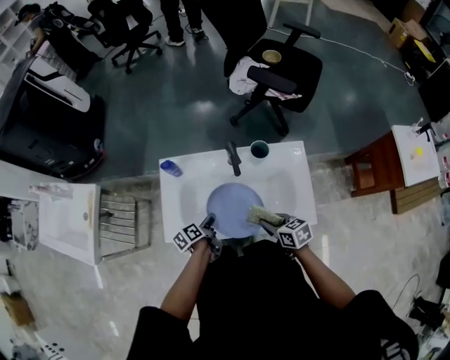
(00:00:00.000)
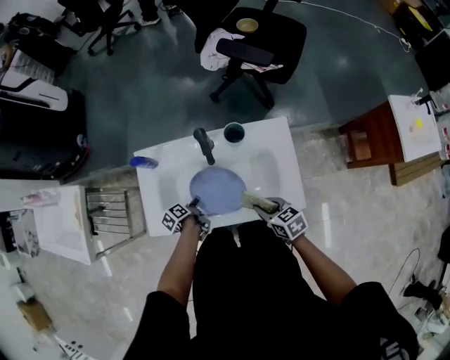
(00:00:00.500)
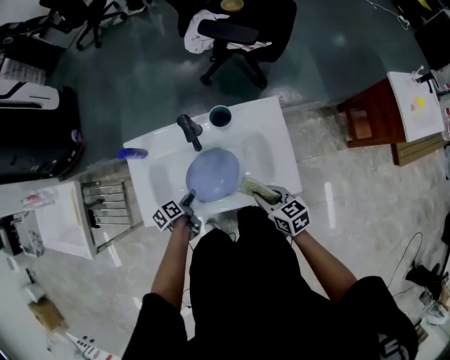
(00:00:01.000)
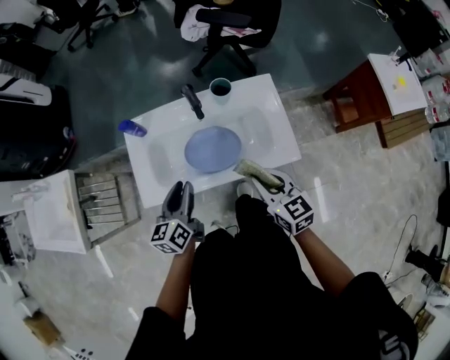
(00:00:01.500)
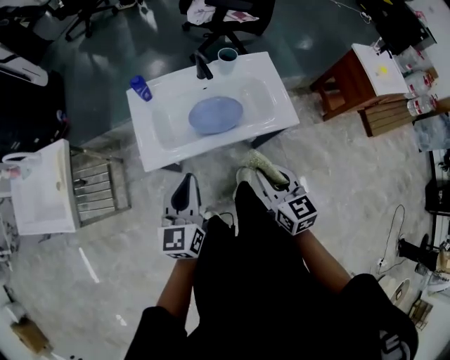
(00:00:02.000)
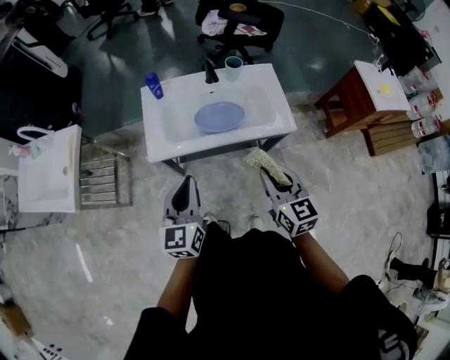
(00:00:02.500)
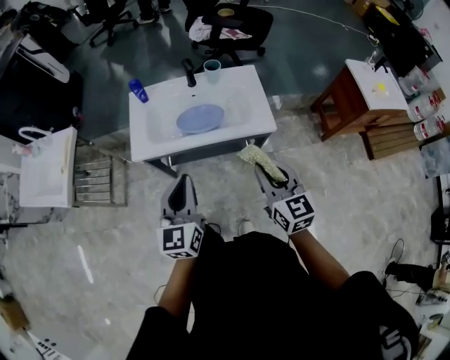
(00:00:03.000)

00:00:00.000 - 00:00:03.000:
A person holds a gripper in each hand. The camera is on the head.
00:00:00.000 - 00:00:01.500: The right gripper moves upward and backward, roughly 10 cm, and swivels some 30 degrees, while the left gripper heads upward, covering roughly 15 cm, and turns by approximately 40 degrees.
00:00:01.500 - 00:00:03.000: Both grippers travel together backward and upward, approximately 25 cm. The left gripper swivels approximately 30 degrees, and closes.

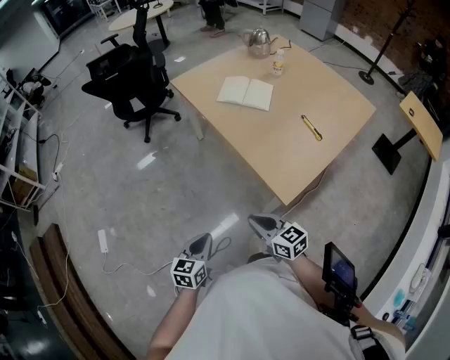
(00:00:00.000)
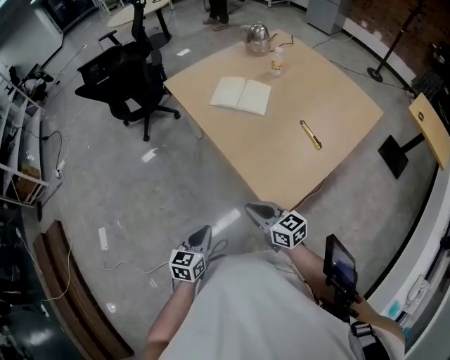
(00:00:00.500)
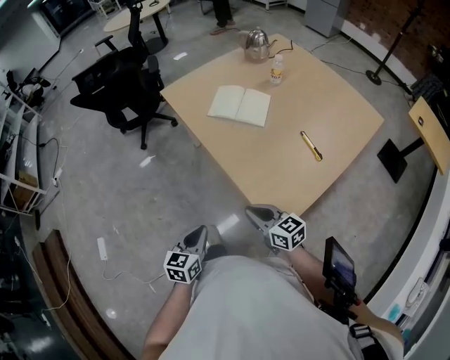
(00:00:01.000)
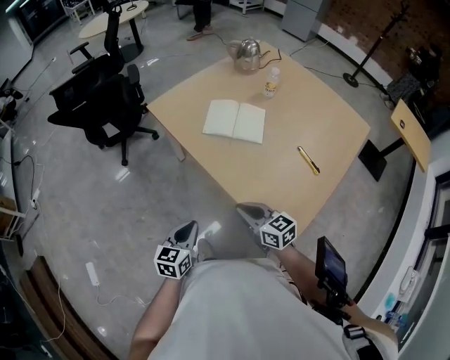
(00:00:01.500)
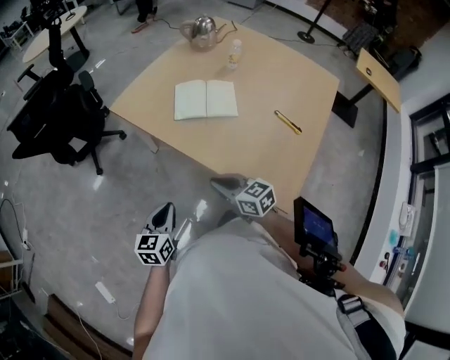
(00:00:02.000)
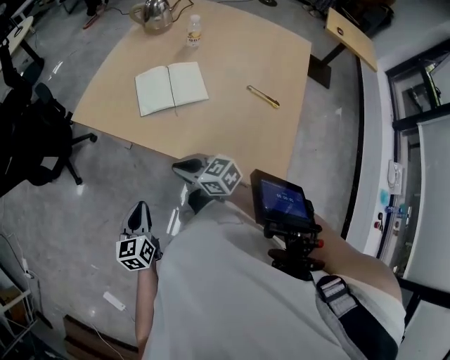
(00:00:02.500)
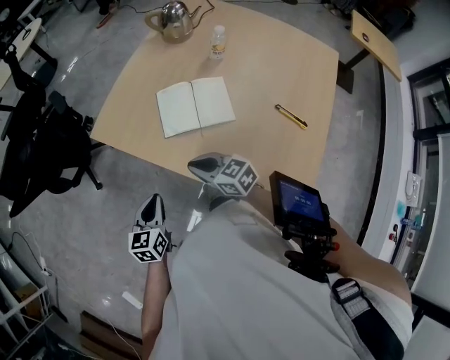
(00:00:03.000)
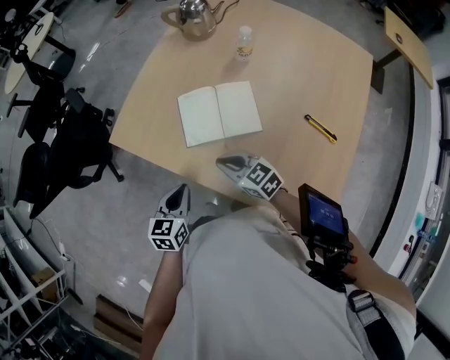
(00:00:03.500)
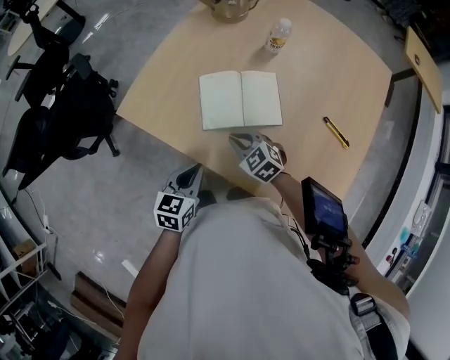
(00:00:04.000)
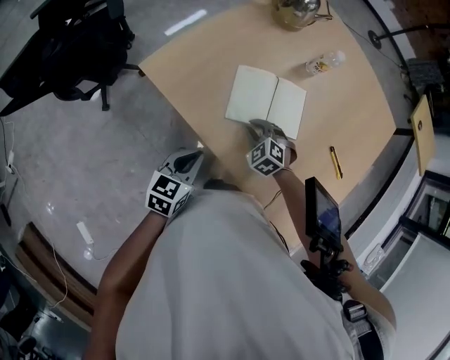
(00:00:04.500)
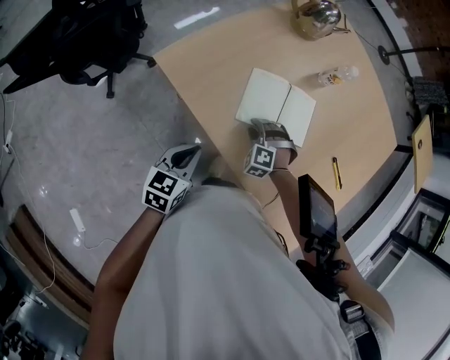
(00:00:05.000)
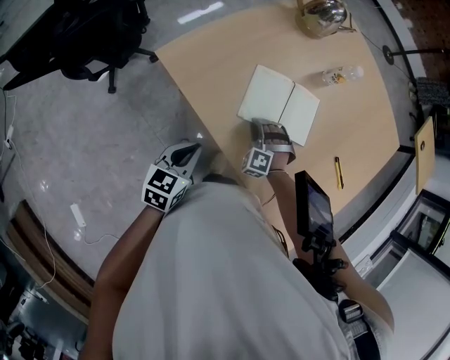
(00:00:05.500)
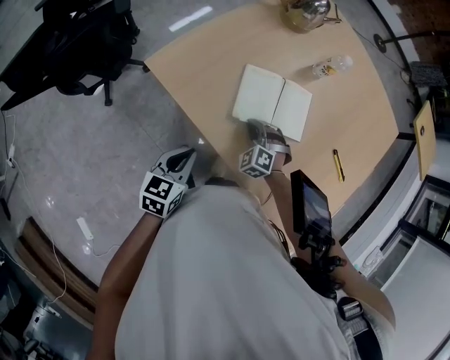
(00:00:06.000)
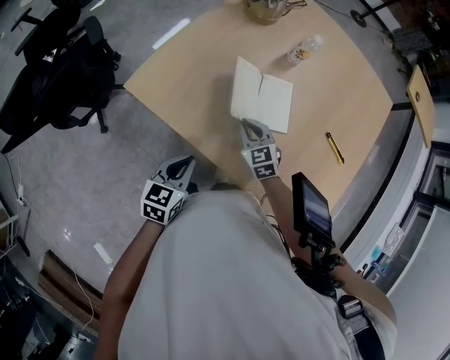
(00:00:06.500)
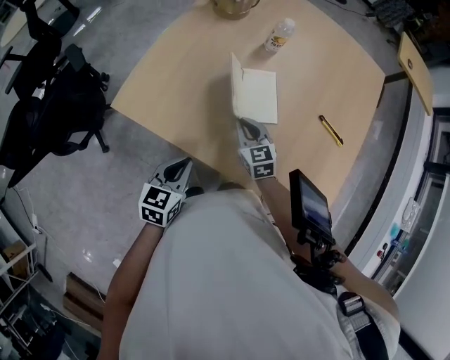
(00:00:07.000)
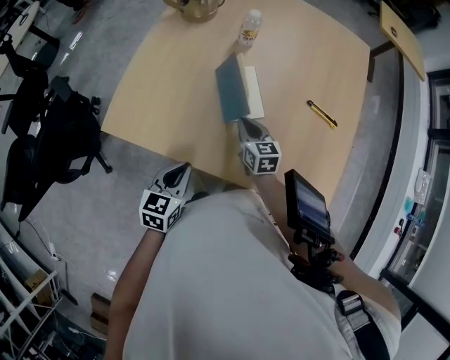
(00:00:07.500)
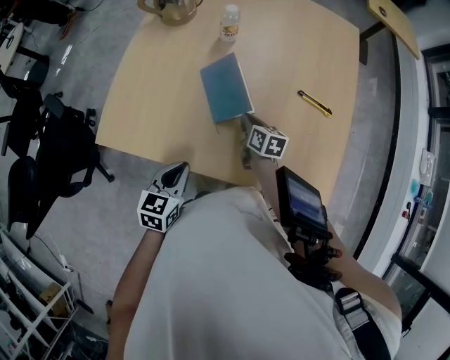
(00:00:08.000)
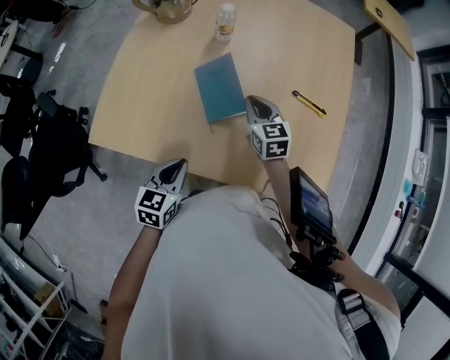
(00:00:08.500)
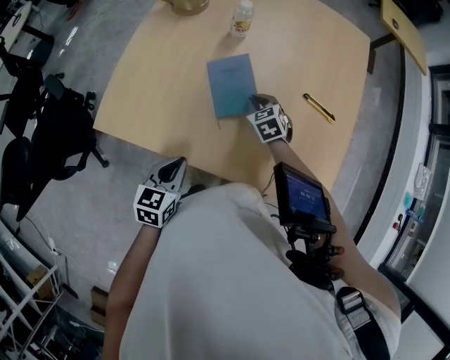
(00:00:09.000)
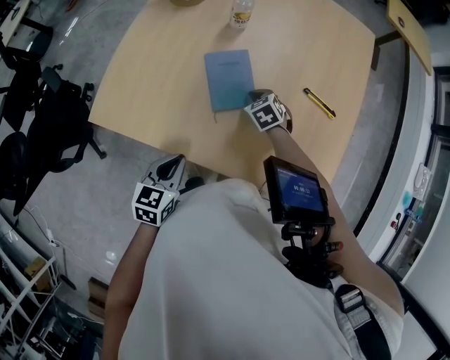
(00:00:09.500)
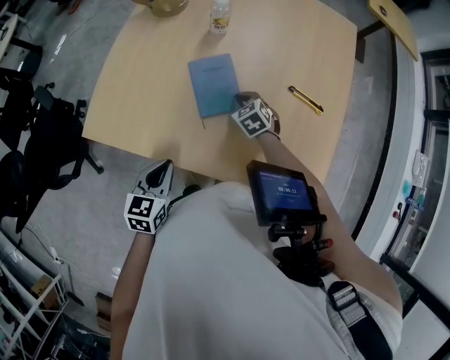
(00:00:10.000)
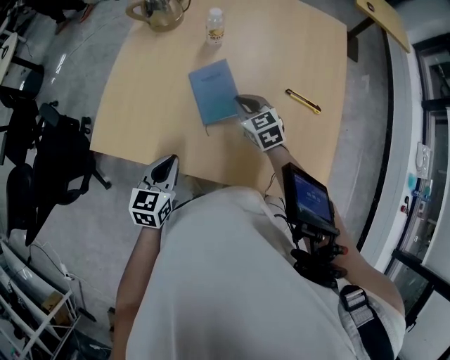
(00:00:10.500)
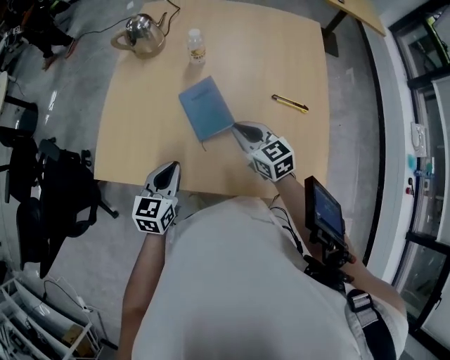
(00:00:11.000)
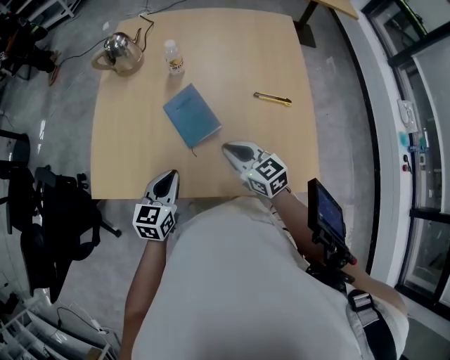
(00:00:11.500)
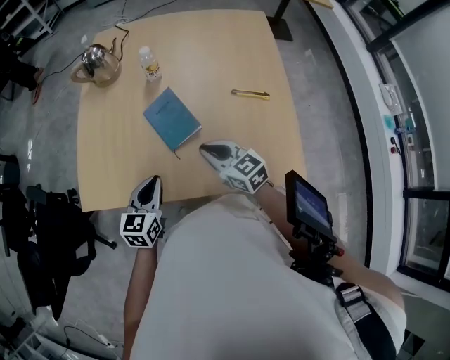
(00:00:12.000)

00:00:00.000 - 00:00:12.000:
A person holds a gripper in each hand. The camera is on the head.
00:00:00.000 - 00:00:02.000: Both grippers move forward, approximately 30 cm.
00:00:02.000 - 00:00:04.000: Both grippers travel together forward, approximately 25 cm. The right gripper changes its angle by about 30 degrees.
00:00:04.000 - 00:00:06.000: The right gripper heads downward, covering approximately 5 cm, and changes its angle by approximately 40 degrees. Meanwhile the left gripper shifts some 10 cm to the left.
00:00:06.000 - 00:00:08.000: The left gripper travels to the right and forward by roughly 10 cm, and rotates roughly 30 degrees. The right gripper goes roughly 20 cm to the right, and rotates around the line of its fingers by about 110 degrees, clockwise from behind.
00:00:08.000 - 00:00:10.000: The right gripper travels upward and back again, approximately 10 cm each way, and twists some 60 degrees counterclockwise, seen from behind.
00:00:10.000 - 00:00:12.000: The right gripper heads upward and backward, covering approximately 20 cm, and points its fingers some 30 degrees further upward. Meanwhile the left gripper moves approximately 5 cm.

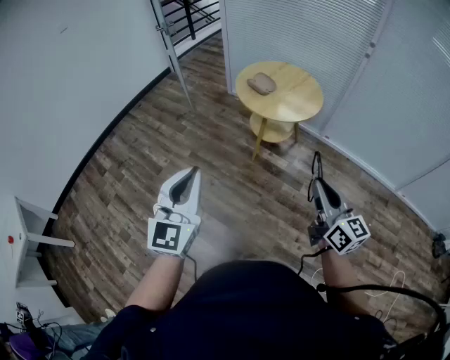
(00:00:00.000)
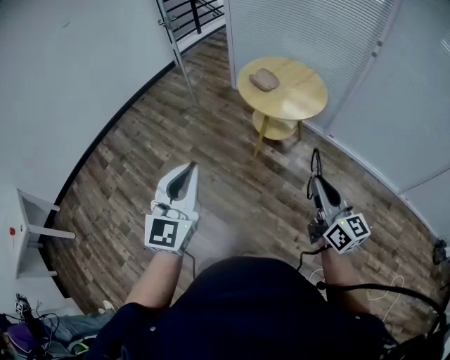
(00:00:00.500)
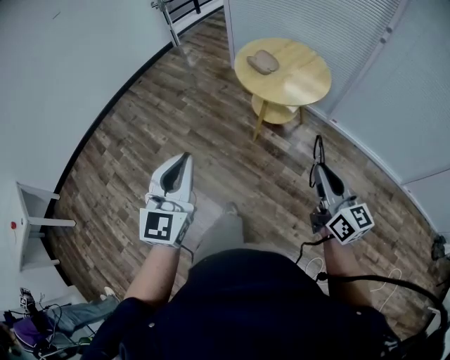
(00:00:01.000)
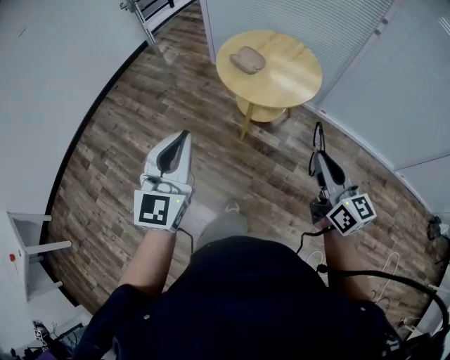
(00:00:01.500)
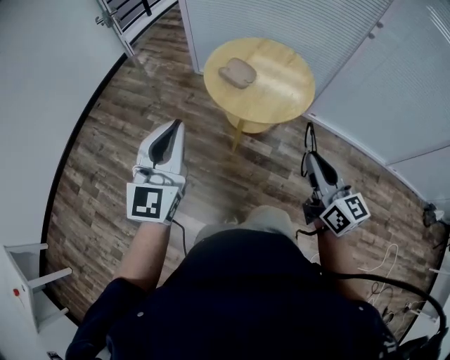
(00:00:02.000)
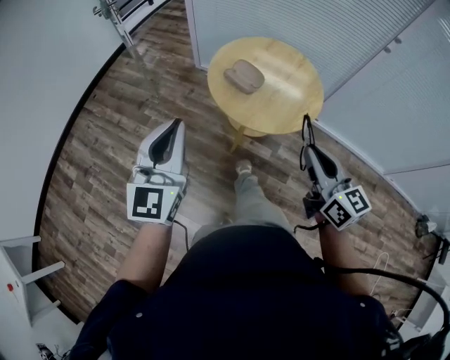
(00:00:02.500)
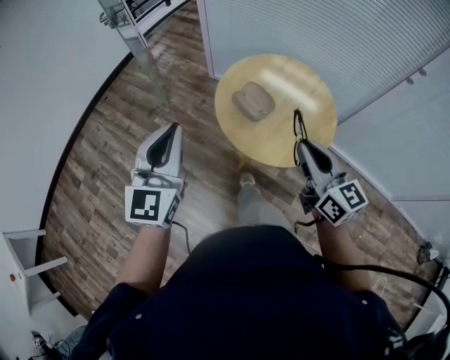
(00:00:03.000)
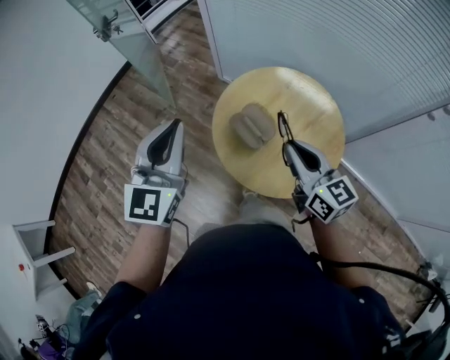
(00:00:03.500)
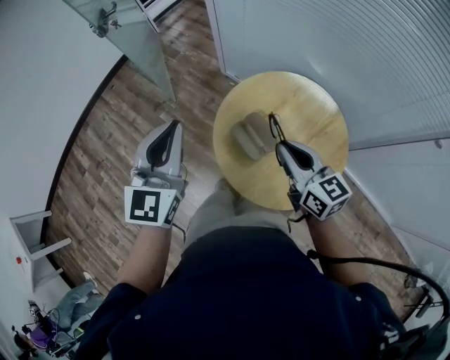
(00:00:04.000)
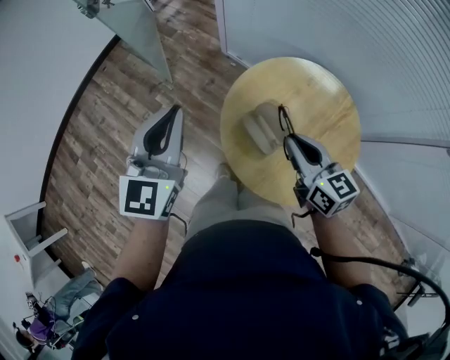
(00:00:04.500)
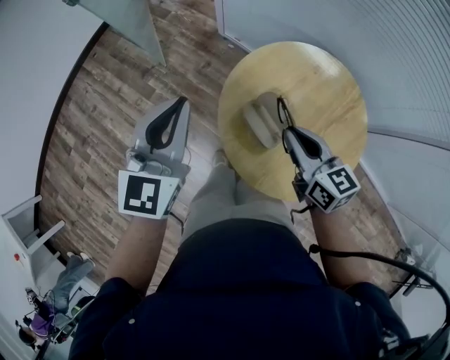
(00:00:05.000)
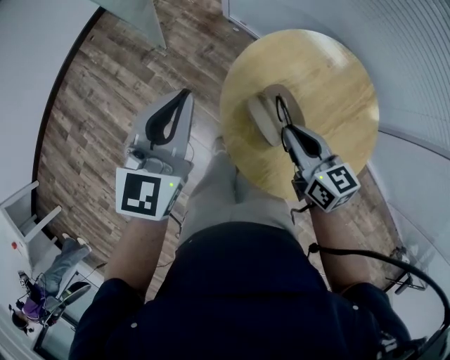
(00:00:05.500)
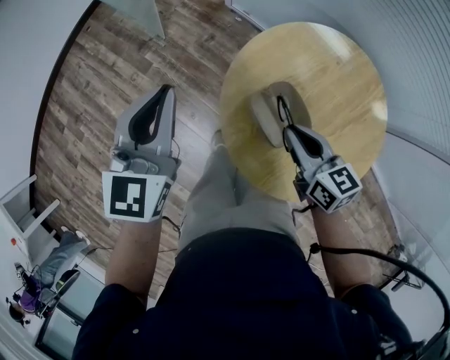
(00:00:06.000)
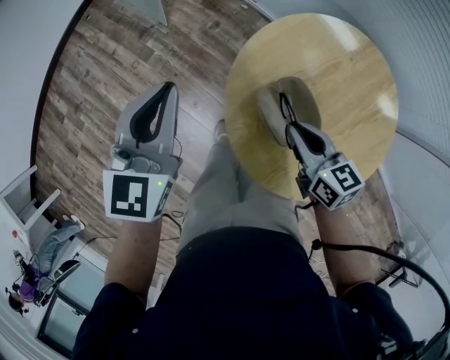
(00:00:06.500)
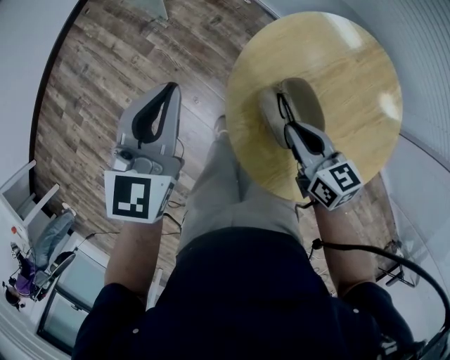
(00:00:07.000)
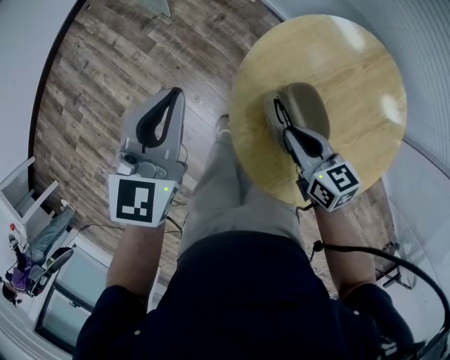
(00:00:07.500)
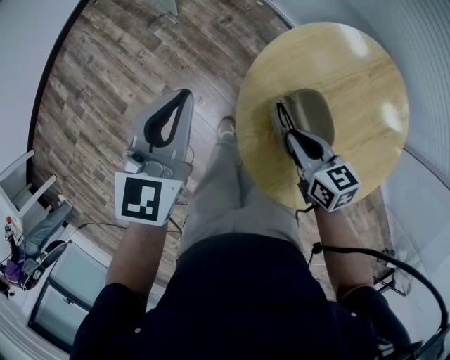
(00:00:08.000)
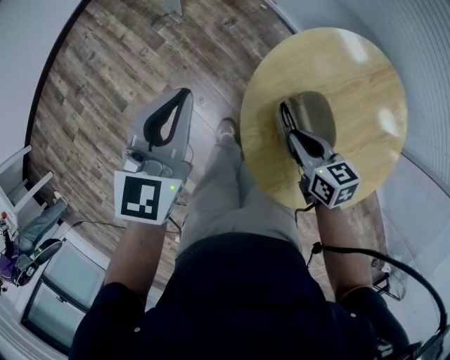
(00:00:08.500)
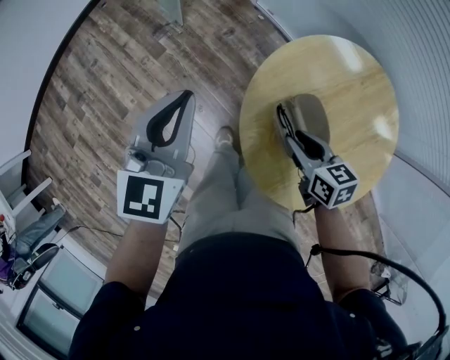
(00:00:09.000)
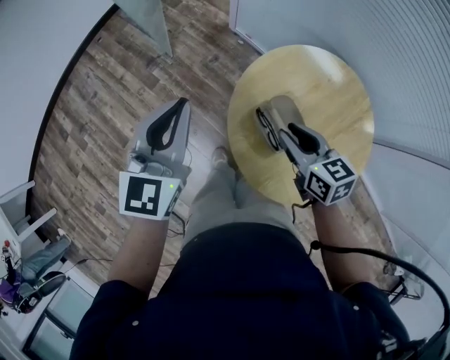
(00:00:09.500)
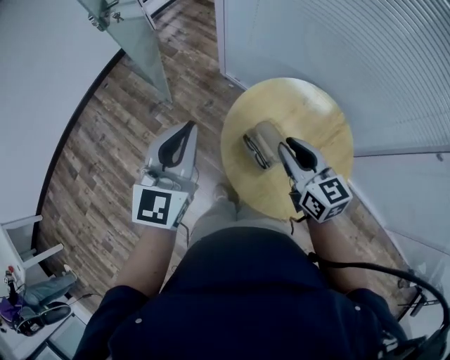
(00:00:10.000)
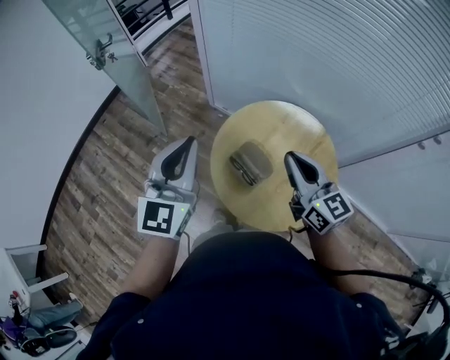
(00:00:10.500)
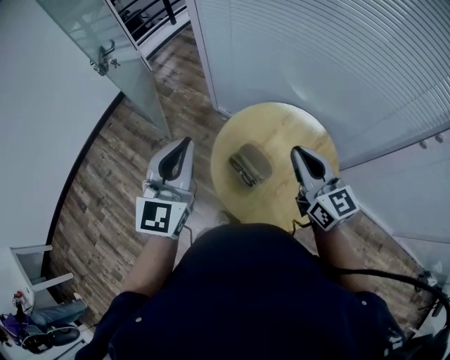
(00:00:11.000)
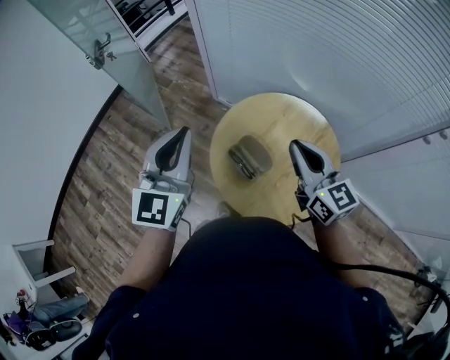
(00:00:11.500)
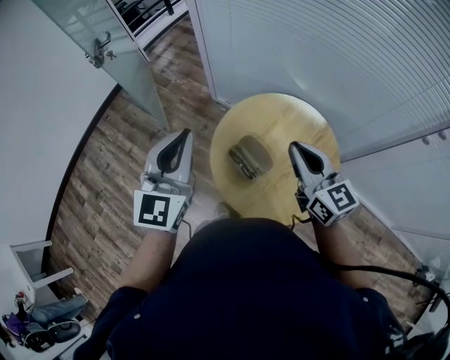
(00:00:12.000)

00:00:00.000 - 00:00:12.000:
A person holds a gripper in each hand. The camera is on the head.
00:00:00.000 - 00:00:02.000: The grippers both shift forward by about 30 cm.
00:00:02.000 - 00:00:04.000: Both grippers are carried forward, about 40 cm. The right gripper rotates some 30 degrees.
00:00:04.000 - 00:00:06.000: The left gripper moves downward and forward, about 20 cm, while the right gripper is displaced downward by roughly 20 cm.
00:00:06.000 - 00:00:08.000: The two grippers go some 10 cm downward.
00:00:08.000 - 00:00:10.000: The left gripper goes approximately 20 cm upward and backward. The right gripper moves upward, roughly 25 cm, and swivels about 30 degrees.
00:00:10.000 - 00:00:12.000: The grippers both shift upward and to the right by some 10 cm. The right gripper closes its fingers.
